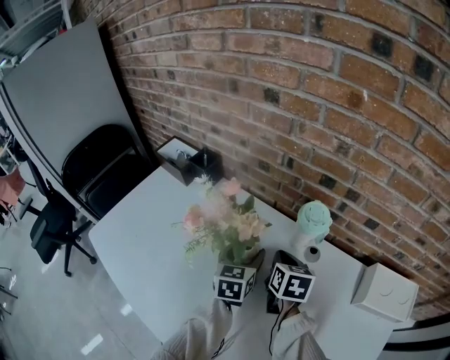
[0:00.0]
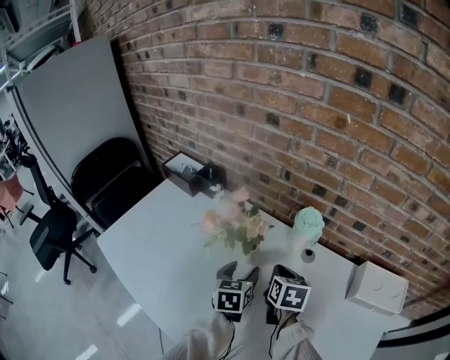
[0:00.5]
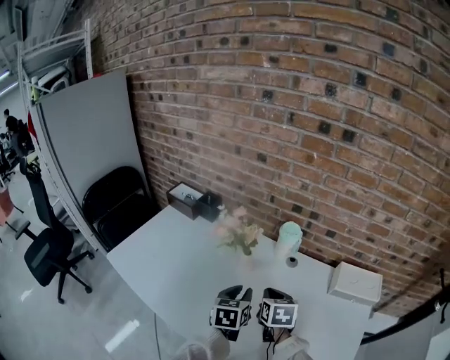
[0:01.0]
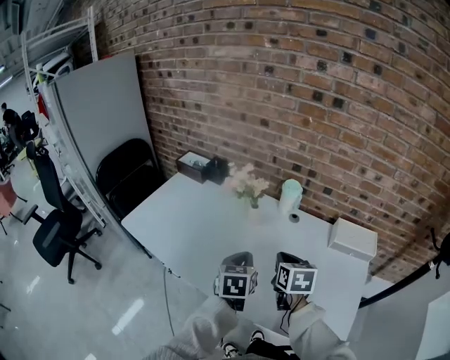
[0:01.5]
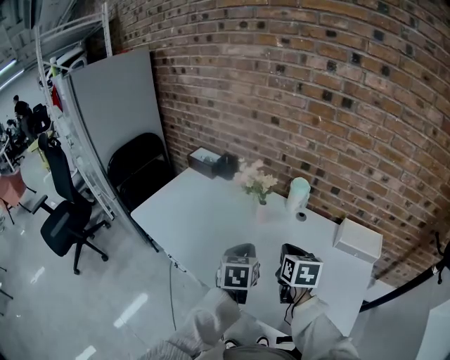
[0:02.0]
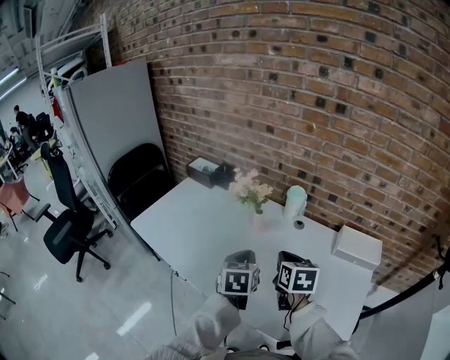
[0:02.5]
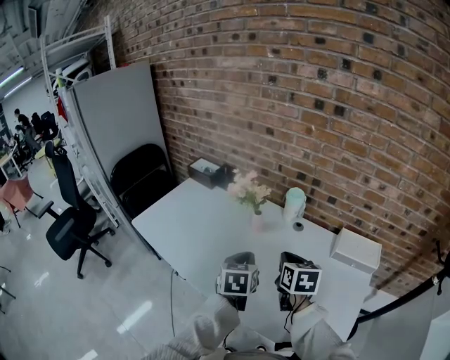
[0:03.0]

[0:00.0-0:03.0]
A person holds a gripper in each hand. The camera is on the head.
0:00.0 to 0:01.5: Both grippers travel together backward and upward, roughly 30 cm. The left gripper closes up.
0:01.5 to 0:03.0: The grippers move only a little.

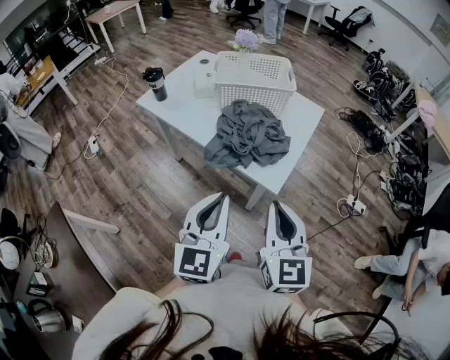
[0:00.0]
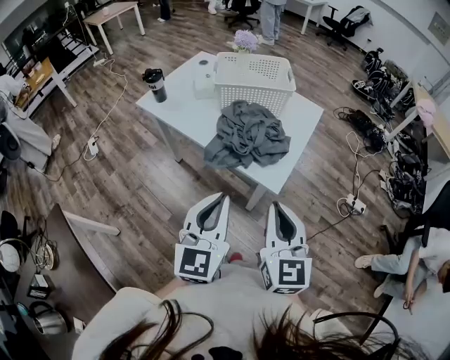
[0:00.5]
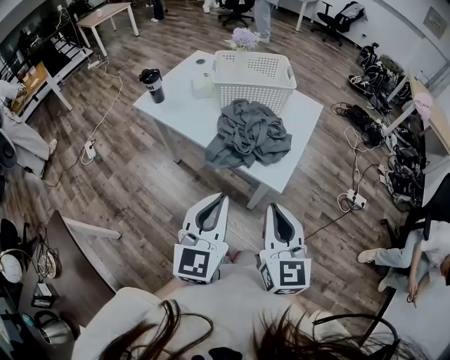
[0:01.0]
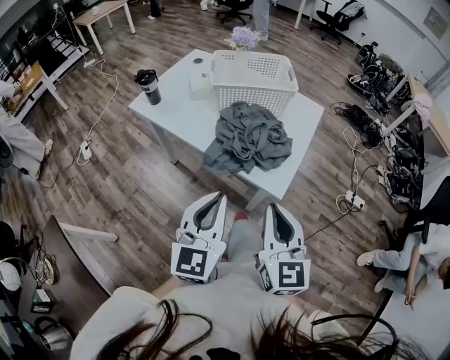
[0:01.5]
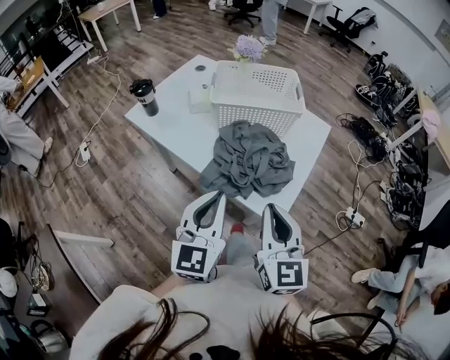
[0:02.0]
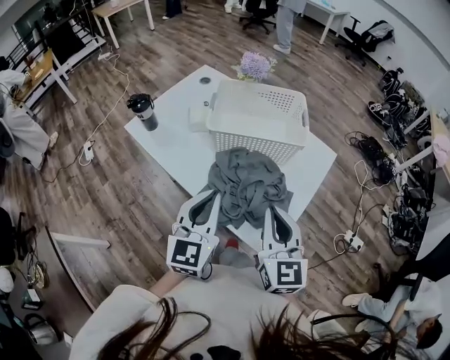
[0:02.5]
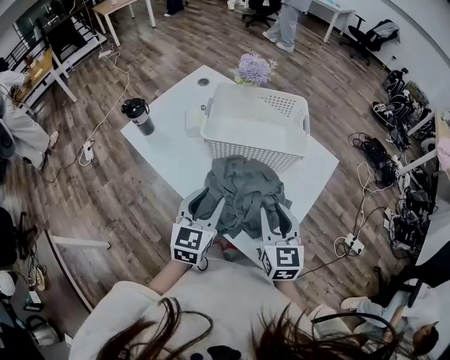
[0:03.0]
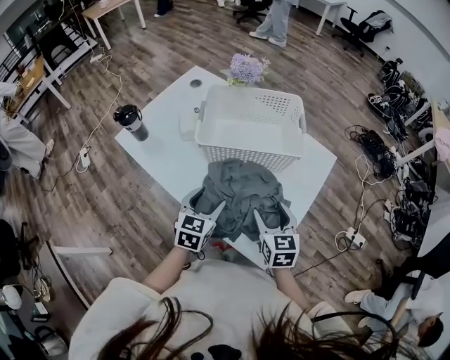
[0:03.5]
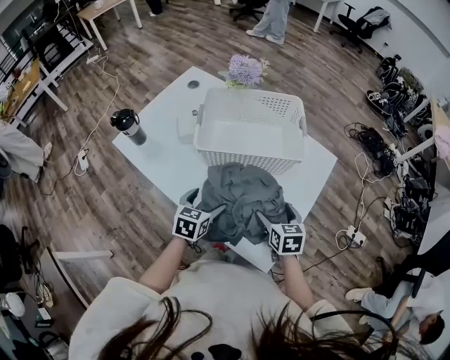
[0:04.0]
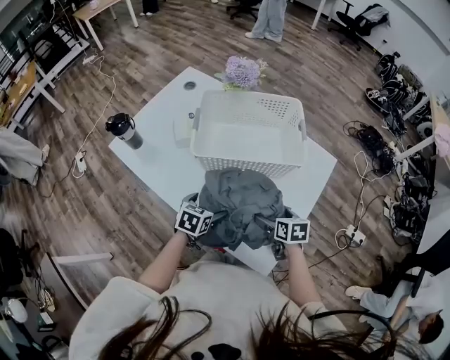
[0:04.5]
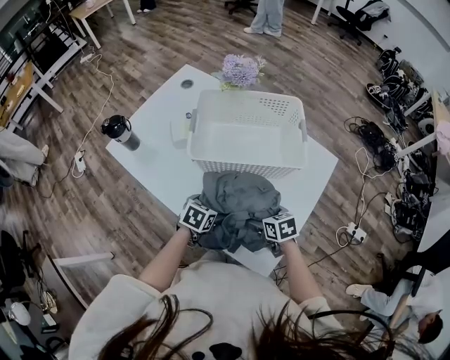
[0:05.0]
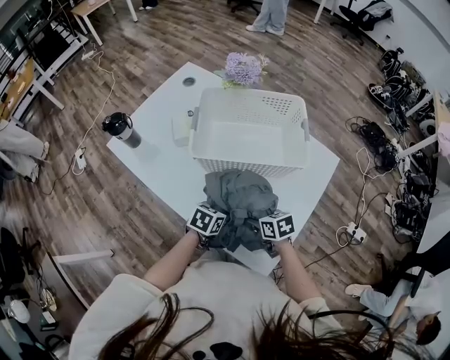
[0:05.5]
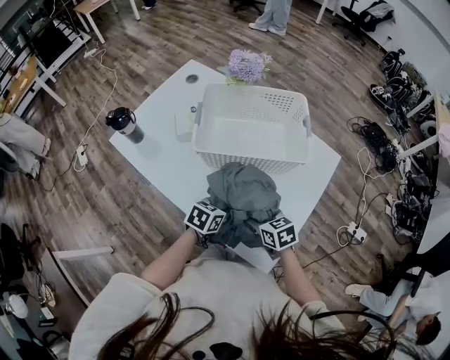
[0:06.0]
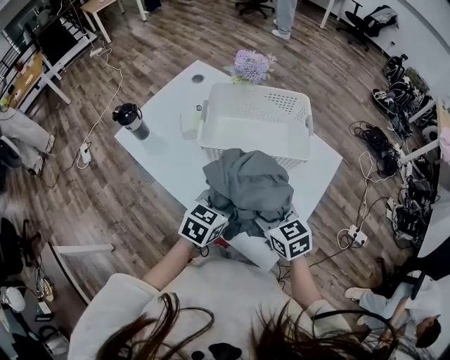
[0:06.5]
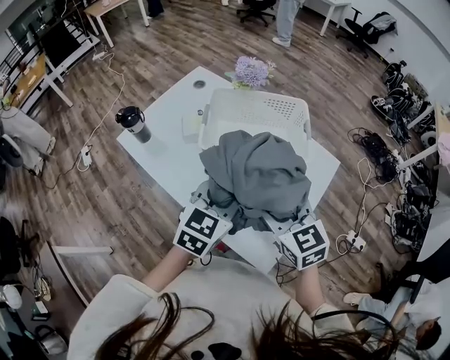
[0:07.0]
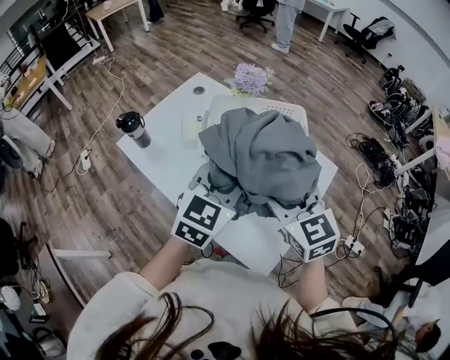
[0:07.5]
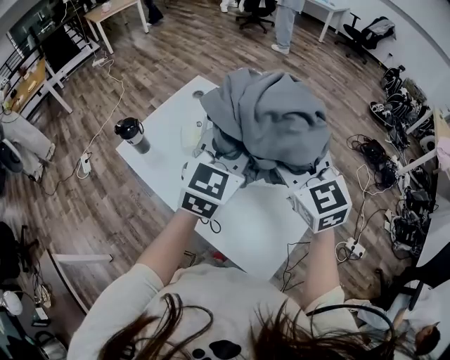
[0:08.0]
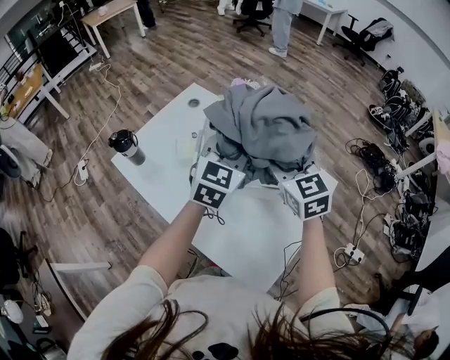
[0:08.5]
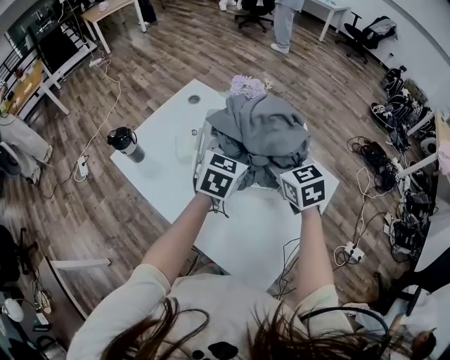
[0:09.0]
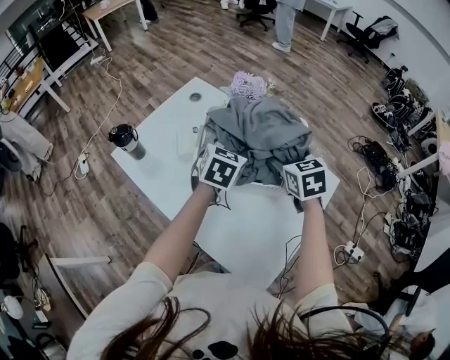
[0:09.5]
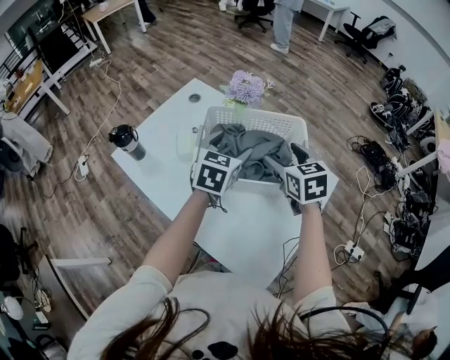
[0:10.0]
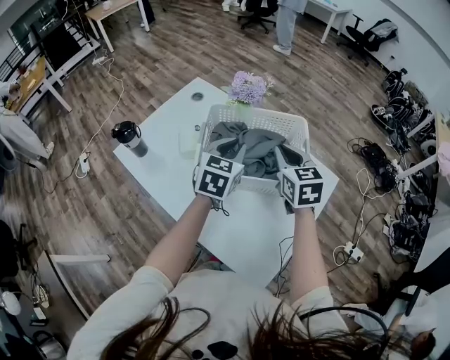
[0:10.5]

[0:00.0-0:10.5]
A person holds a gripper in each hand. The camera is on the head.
0:00.0 to 0:02.0: Both grippers move forward, about 15 cm.
0:02.0 to 0:04.0: Both grippers move downward and forward, about 30 cm. The left gripper points its fingers some 40 degrees further downward, and opens its fingers; the right gripper tips its fingers downward by approximately 30 degrees, and opens up.
0:04.0 to 0:06.5: The left gripper shifts some 10 cm upward and to the right, and closes; the right gripper moves upward and to the left, approximately 10 cm, and rotates roughly 30 degrees.
0:06.5 to 0:08.5: The grippers both shift forward and upward by approximately 25 cm. The right gripper swivels approximately 30 degrees. Meanwhile the left gripper changes its angle by approximately 30 degrees.
0:08.5 to 0:10.5: Both grippers move downward, some 5 cm. The left gripper opens, then closes once more, while the right gripper closes.

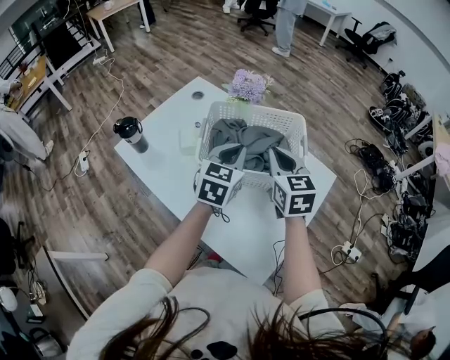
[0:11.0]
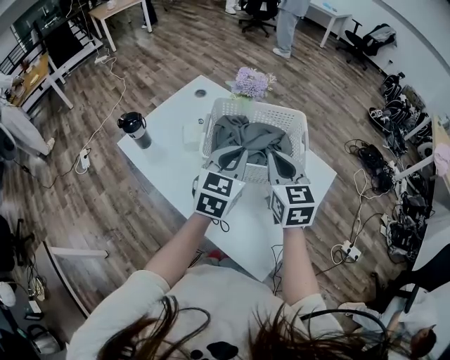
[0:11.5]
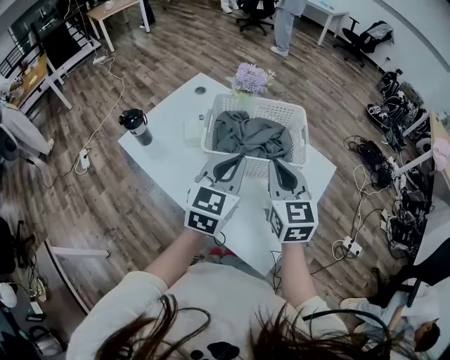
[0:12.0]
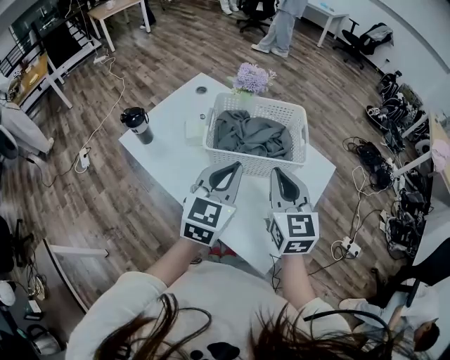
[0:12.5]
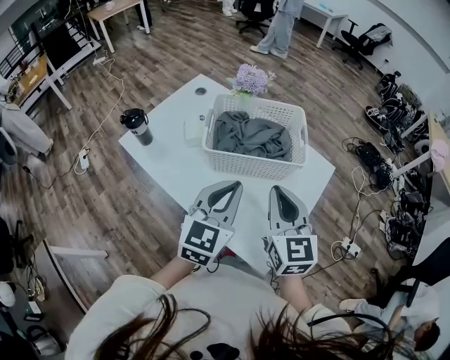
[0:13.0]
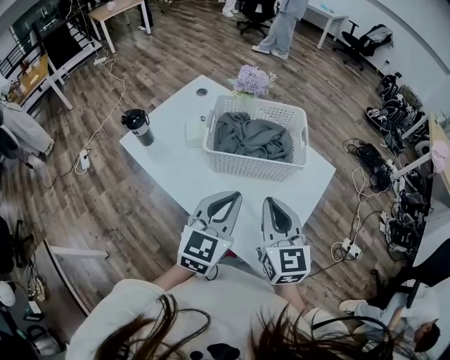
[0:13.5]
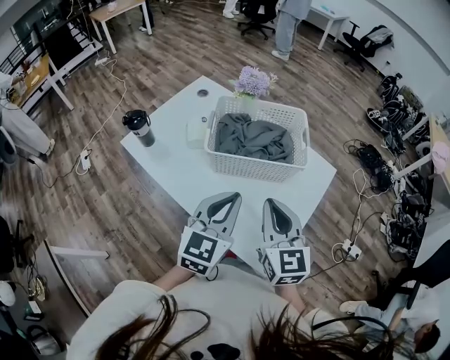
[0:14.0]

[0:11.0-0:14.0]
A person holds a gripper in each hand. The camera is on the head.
0:11.0 to 0:12.5: The right gripper moves backward, about 15 cm; the left gripper moves backward and upward, approximately 15 cm.
0:12.5 to 0:14.0: Both grippers move backward, roughly 5 cm.

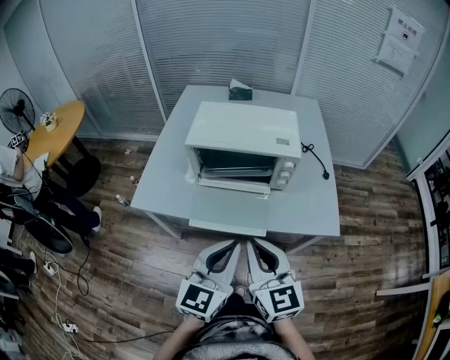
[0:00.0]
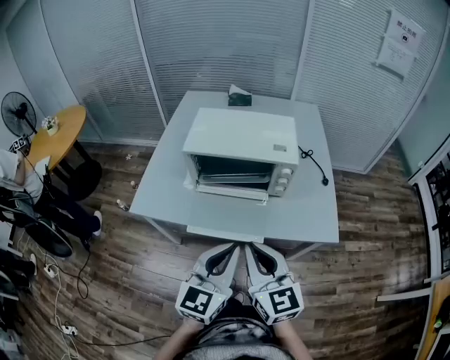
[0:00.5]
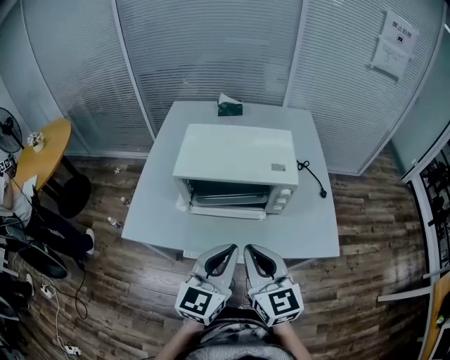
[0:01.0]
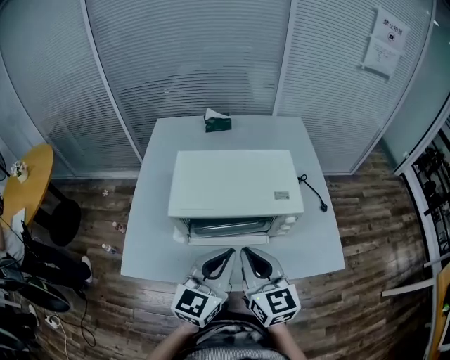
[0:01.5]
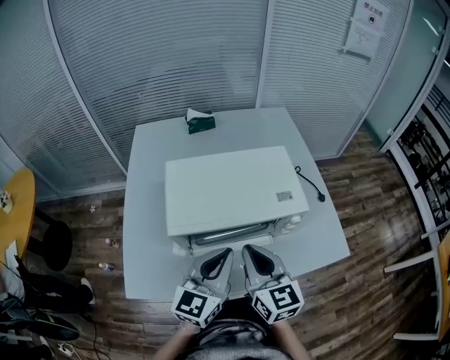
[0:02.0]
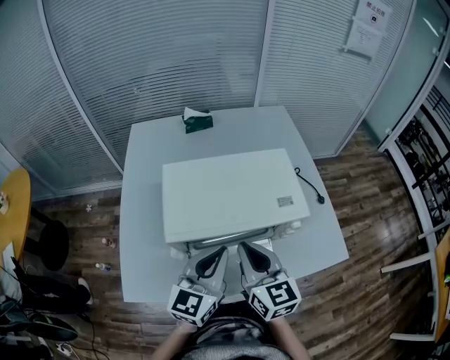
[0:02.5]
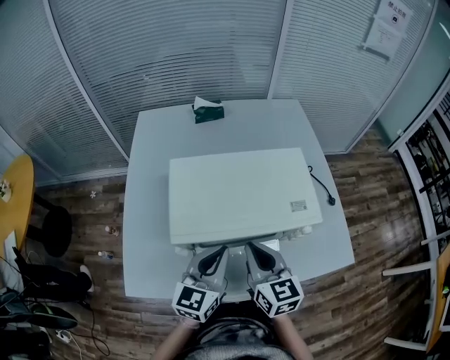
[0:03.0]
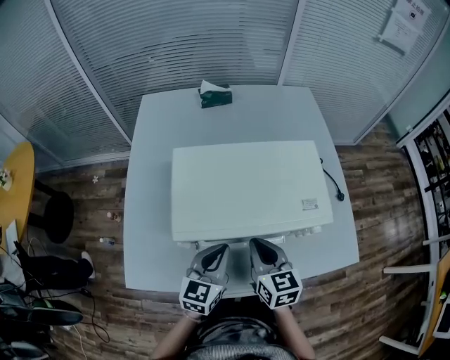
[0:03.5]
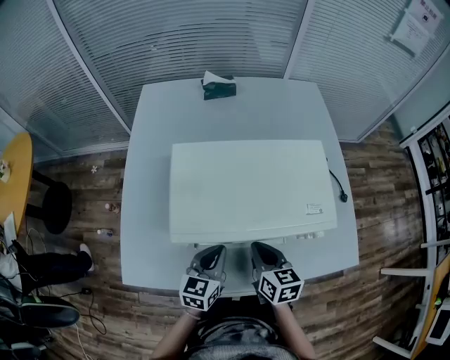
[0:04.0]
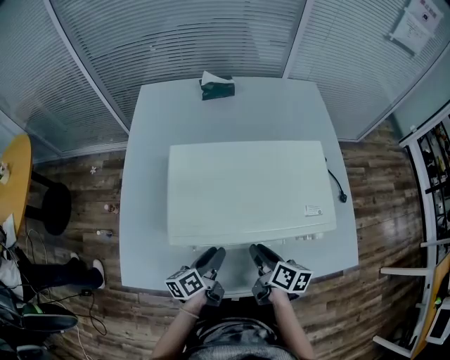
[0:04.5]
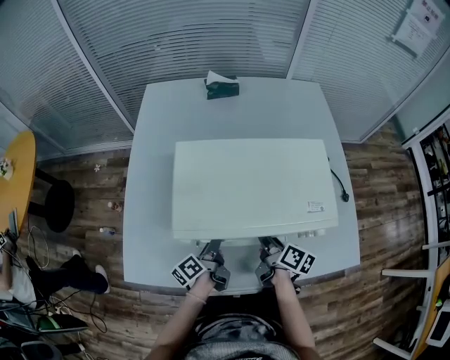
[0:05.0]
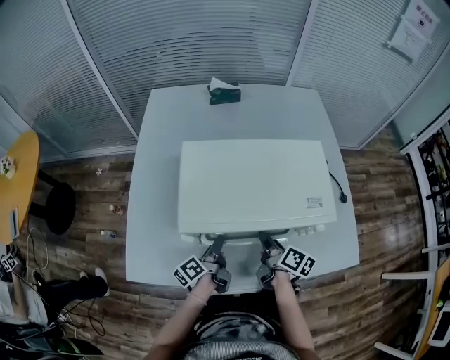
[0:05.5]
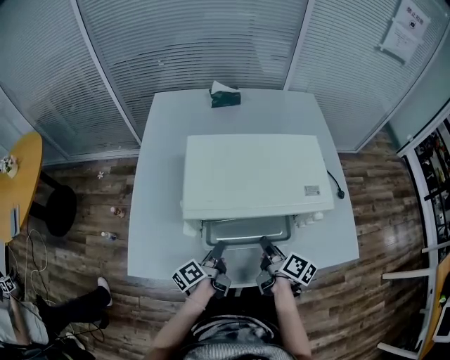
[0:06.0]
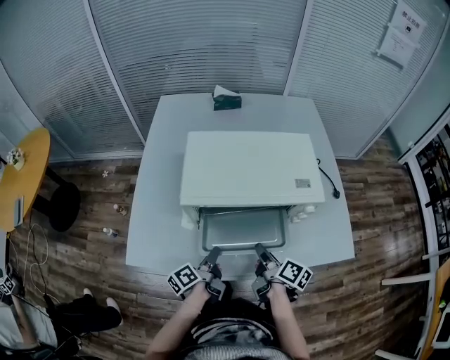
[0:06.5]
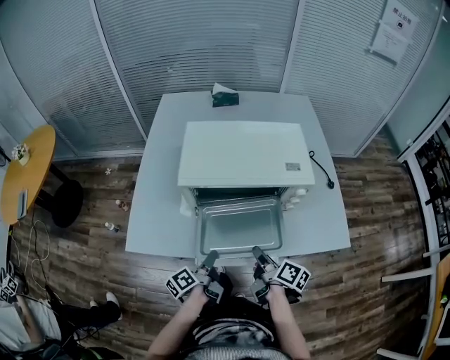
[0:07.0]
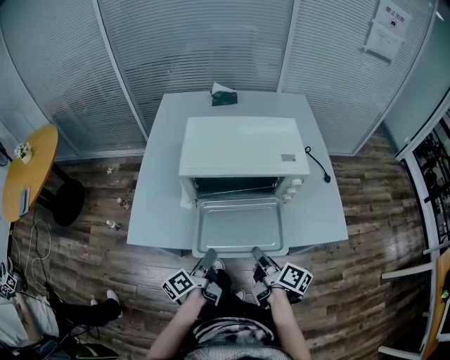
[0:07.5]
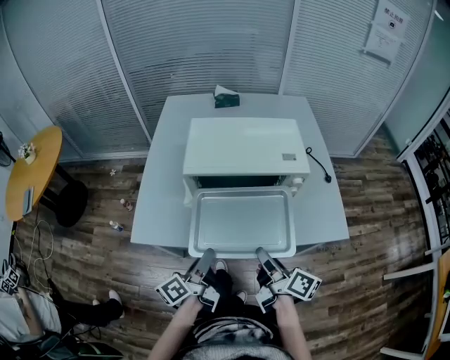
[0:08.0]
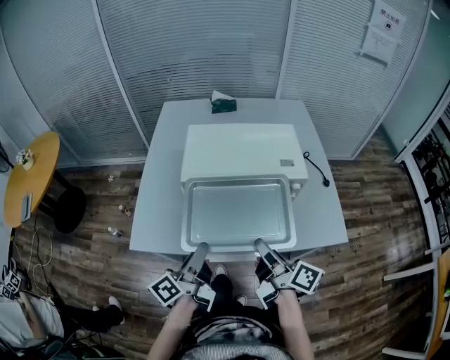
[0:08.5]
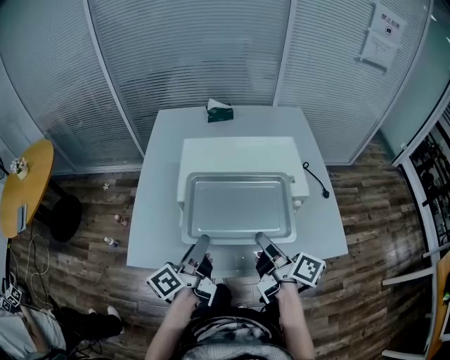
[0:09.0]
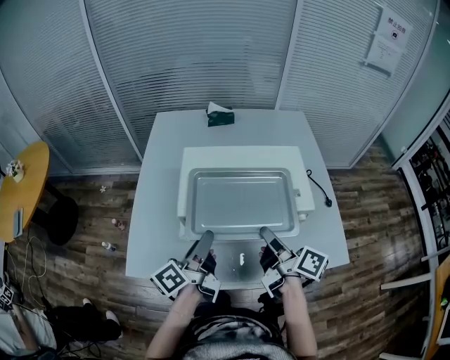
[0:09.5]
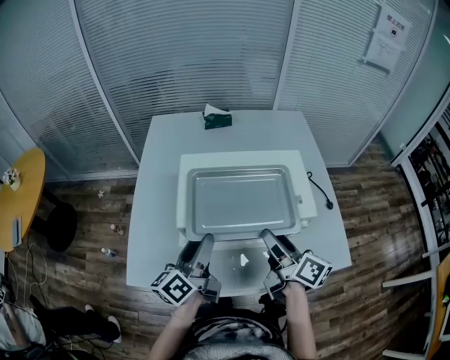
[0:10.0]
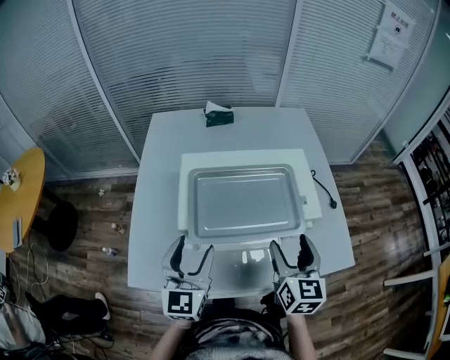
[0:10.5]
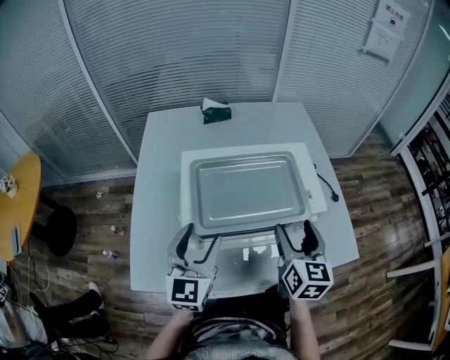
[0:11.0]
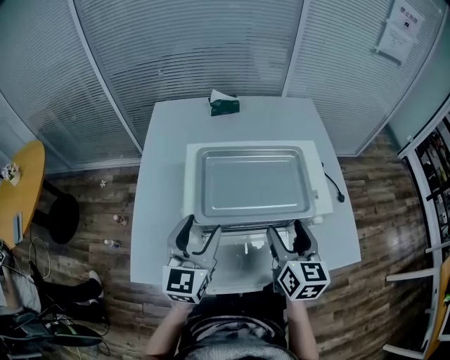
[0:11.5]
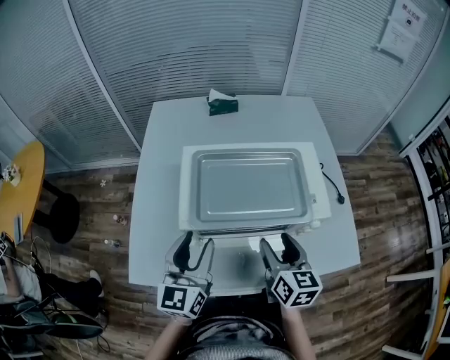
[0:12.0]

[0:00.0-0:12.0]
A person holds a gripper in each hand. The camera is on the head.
0:00.0 to 0:02.0: The two grippers go some 25 cm forward.
0:02.0 to 0:04.0: Both grippers travel together downward, approximately 15 cm. The left gripper turns by roughly 20 degrees, while the right gripper changes its angle by about 30 degrees.
0:04.0 to 0:06.0: The right gripper ends up roughly 5 cm from where it was, and rolls clockwise, seen from behind, by some 40 degrees, while the left gripper shifts roughly 5 cm downward, rolls counterclockwise, seen from behind, by approximately 70 degrees, and opens.
0:06.0 to 0:08.0: The two grippers go approximately 20 cm backward and upward. The right gripper changes its angle by about 20 degrees.
0:08.0 to 0:10.0: The two grippers go about 20 cm forward. The right gripper opens its fingers.
0:10.0 to 0:12.0: The left gripper rotates around the line of its fingers by about 50 degrees, clockwise from behind, while the right gripper travels downward by roughly 5 cm, and swivels some 40 degrees.
